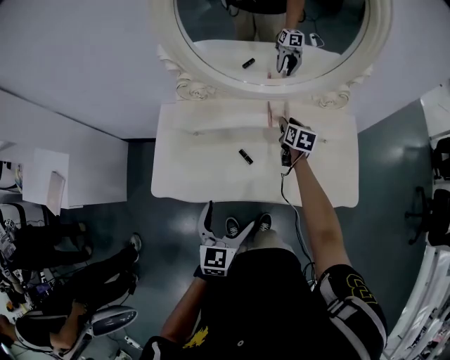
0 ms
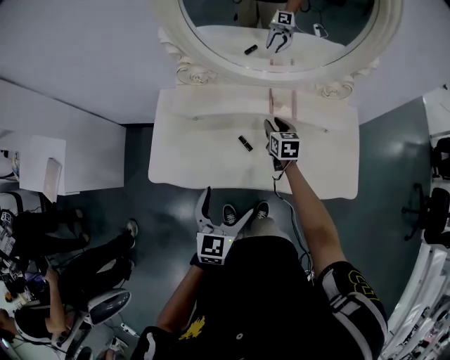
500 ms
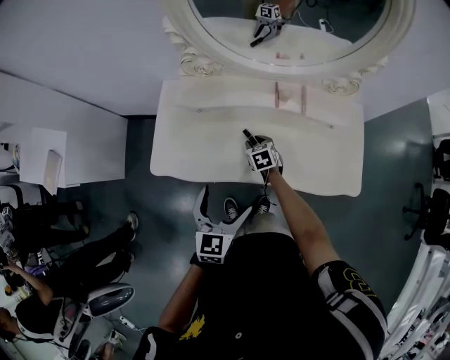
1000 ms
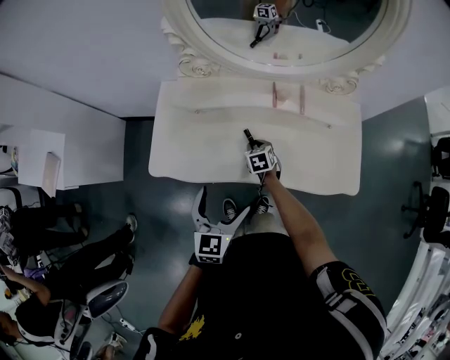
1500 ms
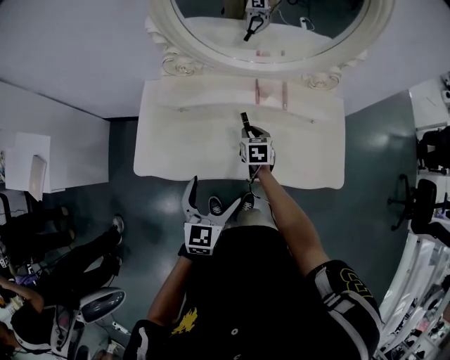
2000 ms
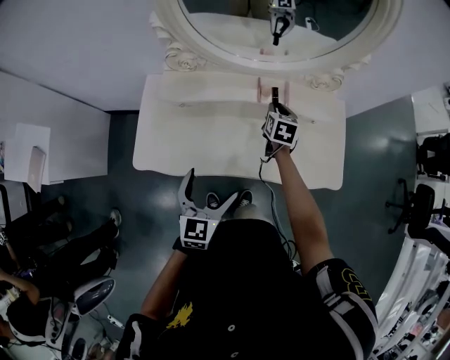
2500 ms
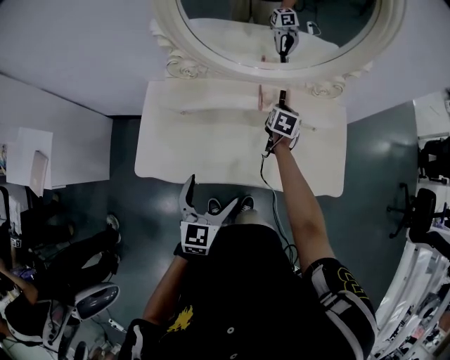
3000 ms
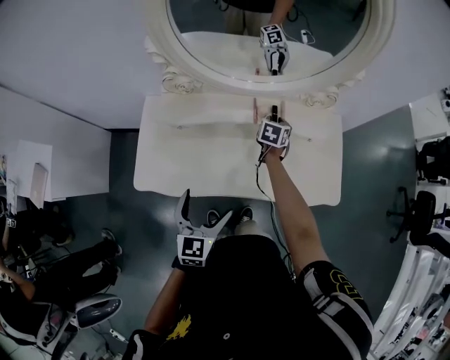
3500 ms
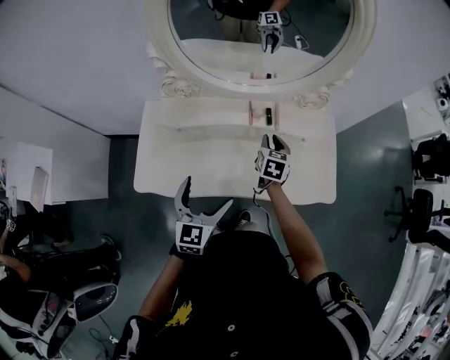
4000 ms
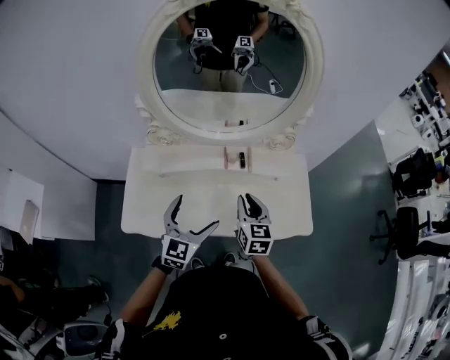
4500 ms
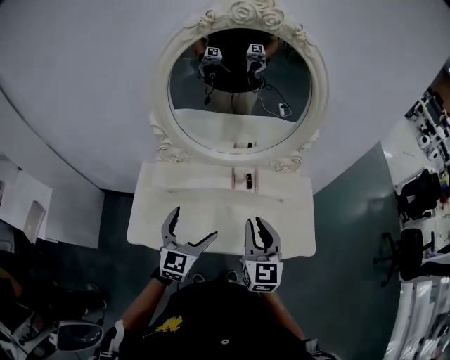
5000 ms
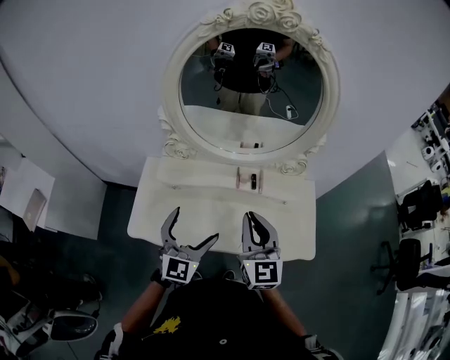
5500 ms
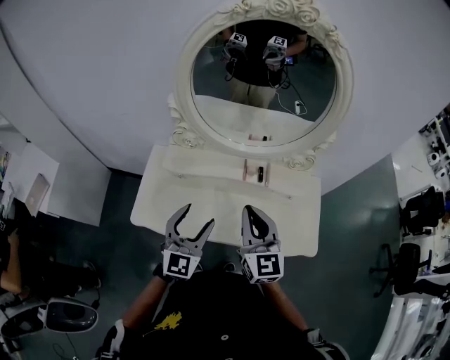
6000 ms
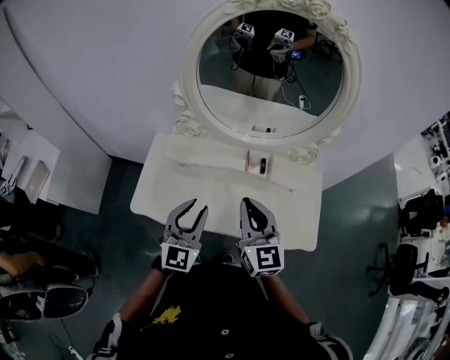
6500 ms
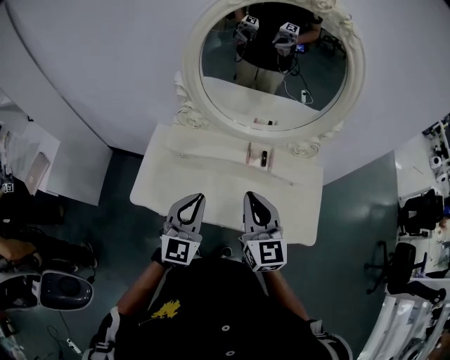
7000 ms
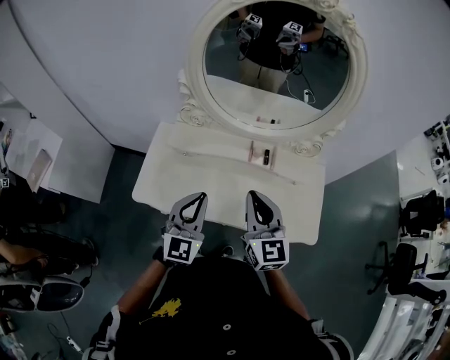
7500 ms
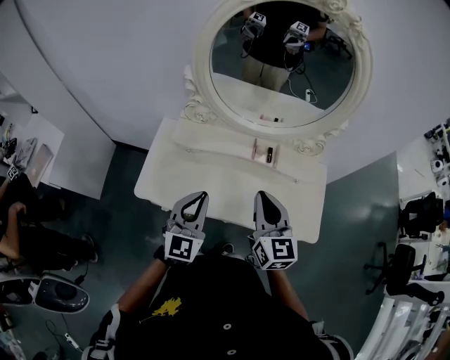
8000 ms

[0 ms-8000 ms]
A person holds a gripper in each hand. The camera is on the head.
0 ms to 2000 ms: The right gripper shifts approximately 15 cm backward and to the left, and swivels about 20 degrees.
2000 ms to 4000 ms: The left gripper shifts by some 5 cm. The right gripper moves to the right and upward, some 15 cm, and goes forward and returns, about 15 cm each way.
4000 ms to 6000 ms: The left gripper travels upward by some 10 cm, turns by some 30 degrees, and closes up, while the right gripper travels upward and backward by approximately 30 cm, and points its fingers approximately 30 degrees further upward.
6000 ms to 8000 ms: The left gripper closes up.

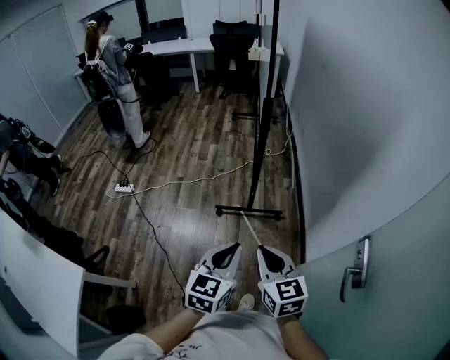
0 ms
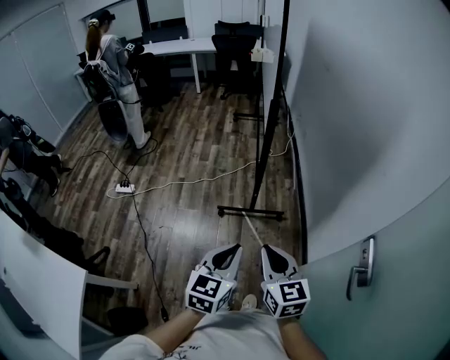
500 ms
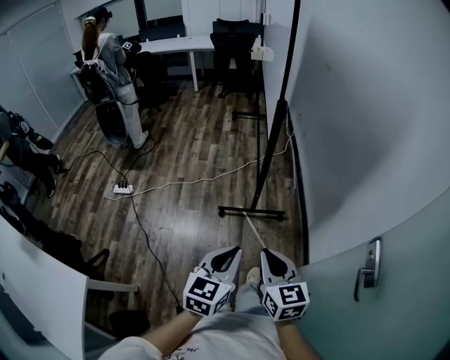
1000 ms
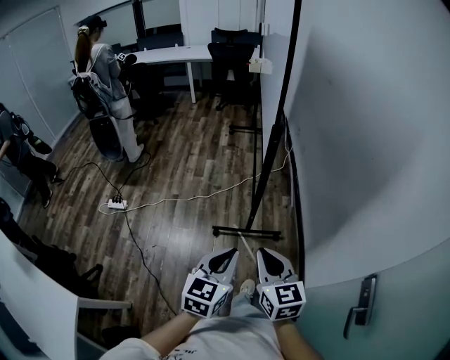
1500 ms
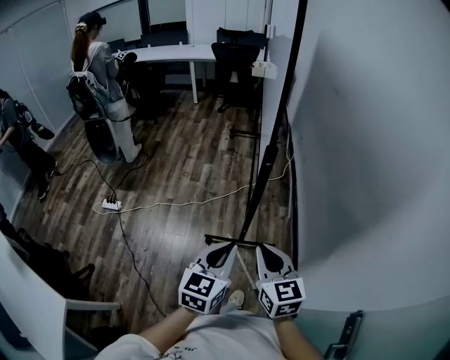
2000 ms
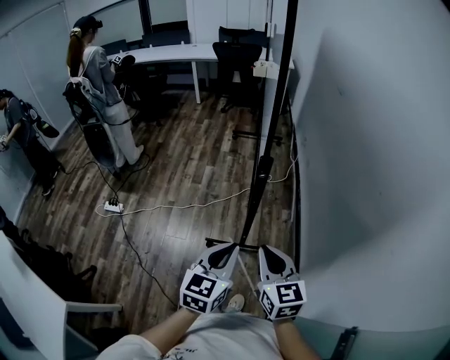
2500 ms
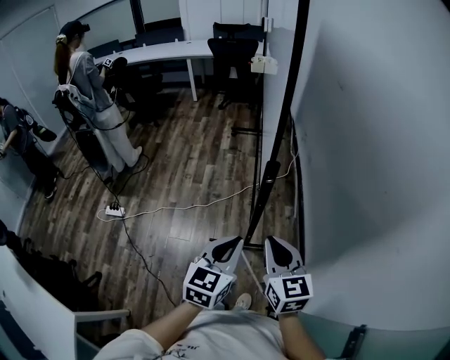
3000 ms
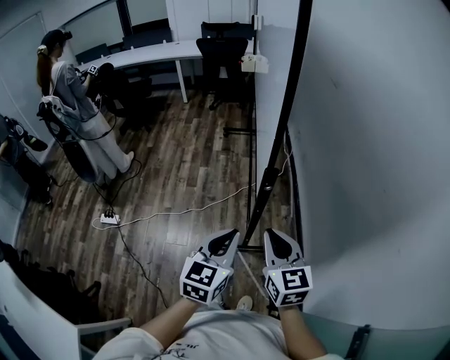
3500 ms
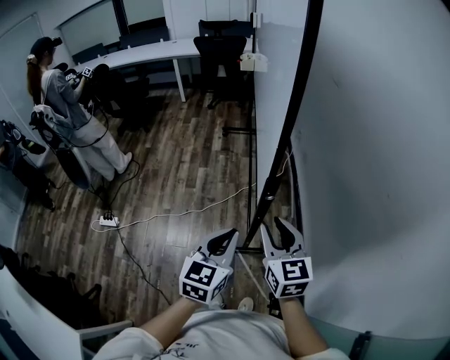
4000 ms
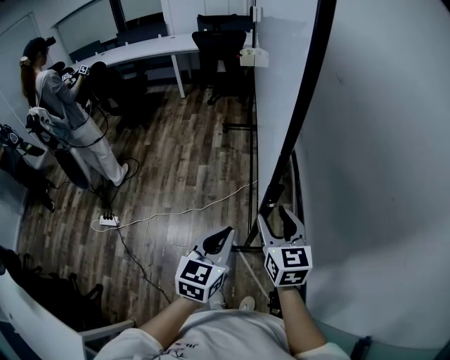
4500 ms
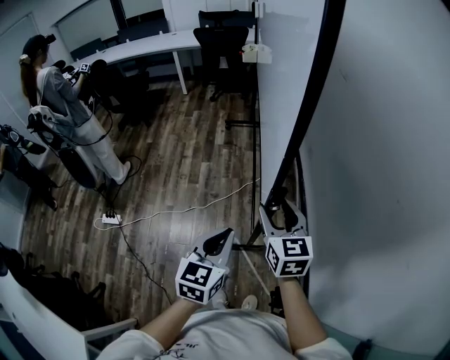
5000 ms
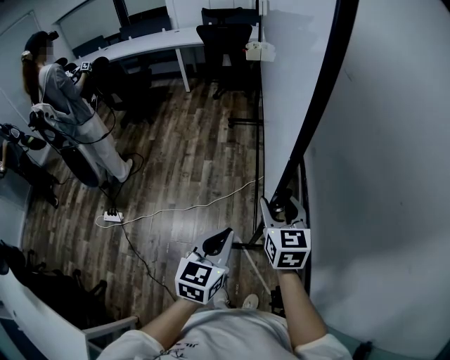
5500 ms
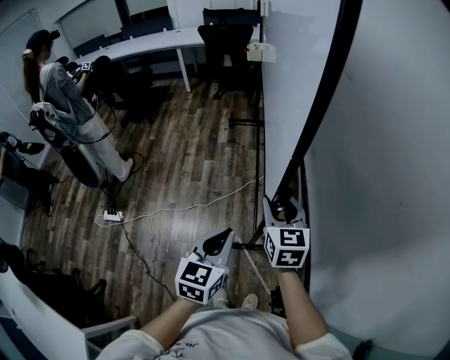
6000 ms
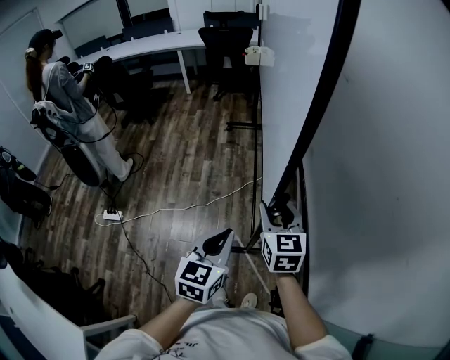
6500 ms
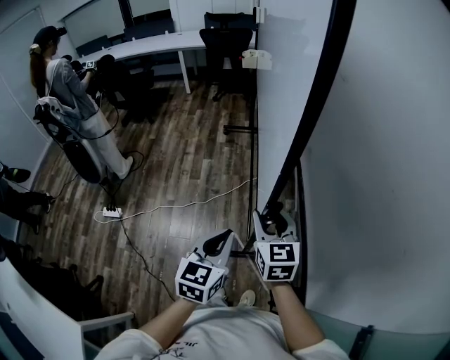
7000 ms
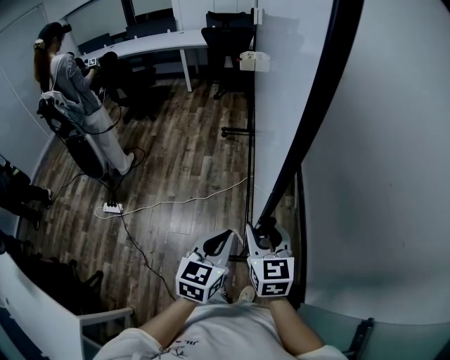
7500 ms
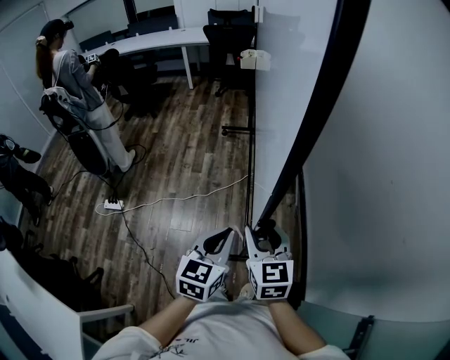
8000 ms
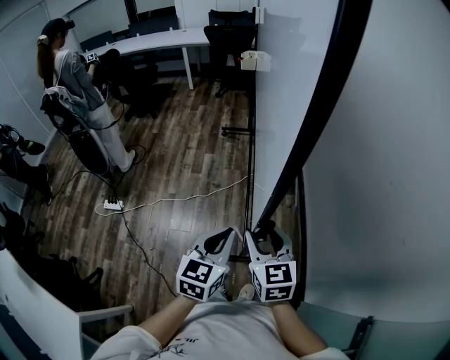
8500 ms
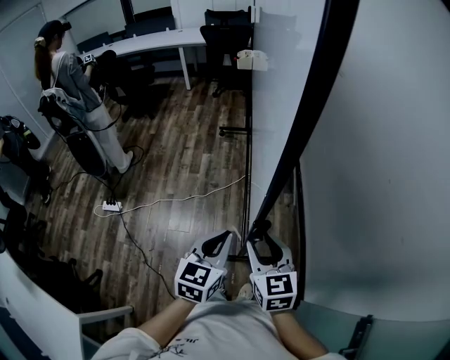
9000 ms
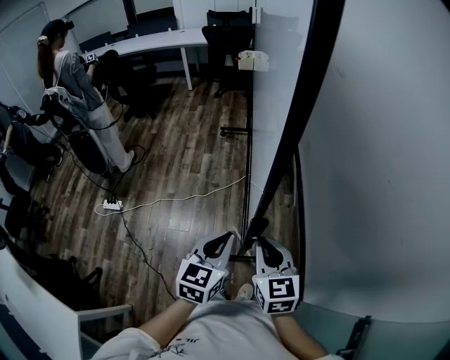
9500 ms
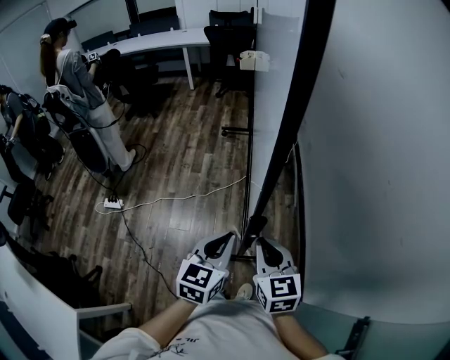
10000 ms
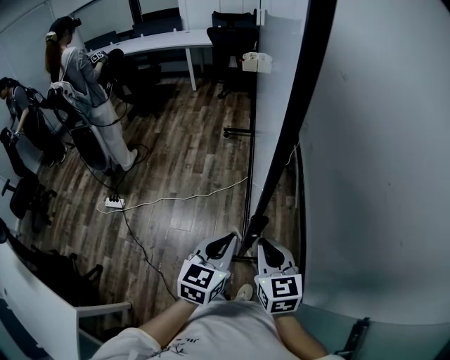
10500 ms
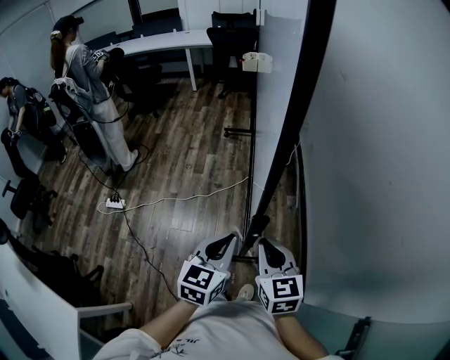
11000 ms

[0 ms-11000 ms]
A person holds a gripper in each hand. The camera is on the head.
0 ms to 2000 ms: Both grippers travel together forward, roughly 25 cm.
2000 ms to 3500 ms: Both grippers move forward, roughly 15 cm.
3500 ms to 5500 ms: The right gripper shifts some 15 cm forward, and opens its fingers. Meanwhile the left gripper heads forward, covering some 5 cm.
5500 ms to 7500 ms: The left gripper goes roughly 10 cm backward. The right gripper goes roughly 15 cm backward.
7500 ms to 9000 ms: The right gripper travels backward by some 5 cm.
9000 ms to 11000 ms: The right gripper closes its fingers.

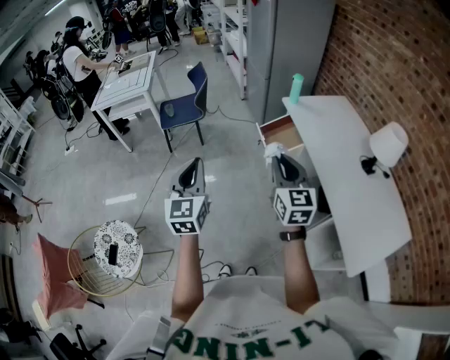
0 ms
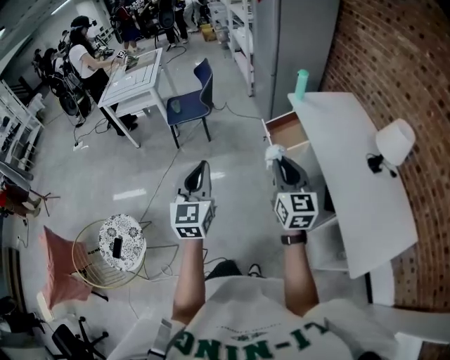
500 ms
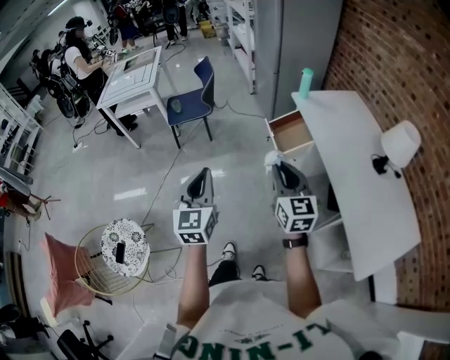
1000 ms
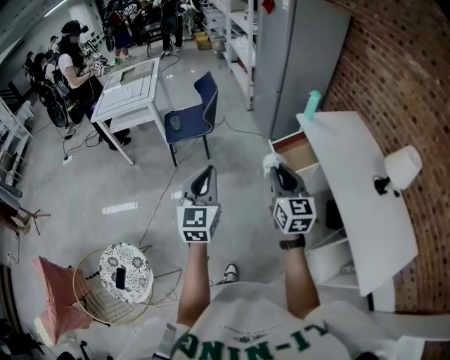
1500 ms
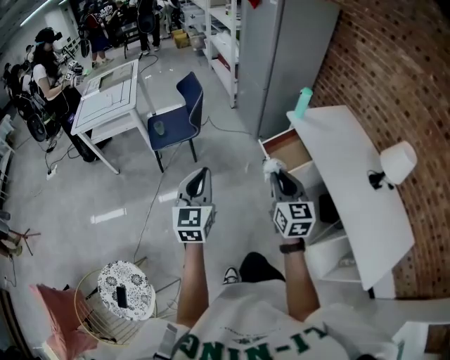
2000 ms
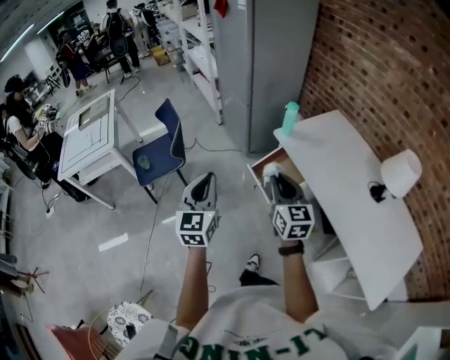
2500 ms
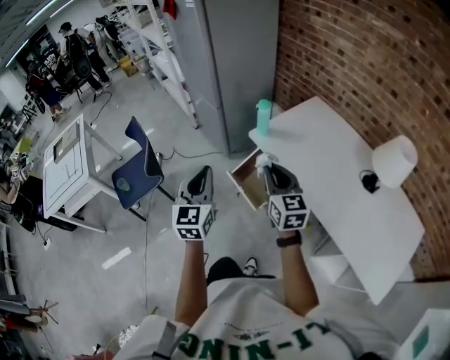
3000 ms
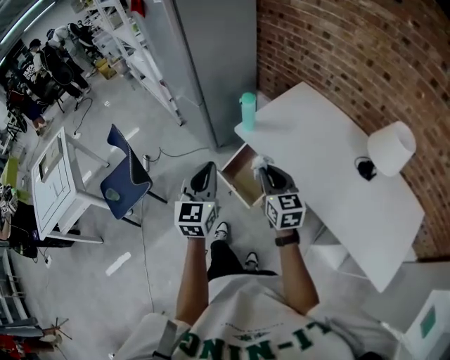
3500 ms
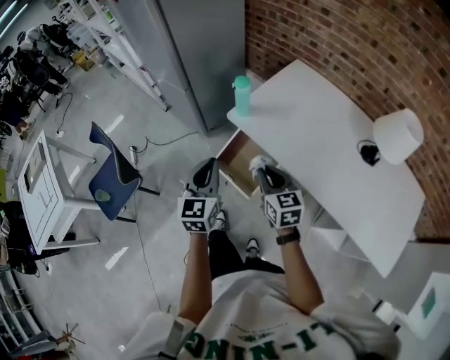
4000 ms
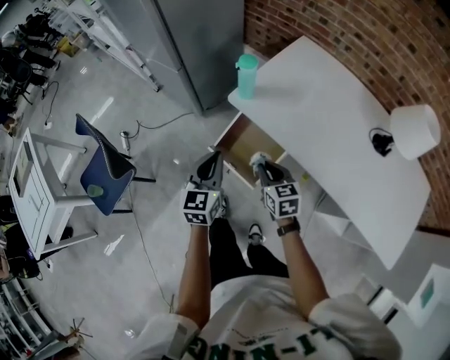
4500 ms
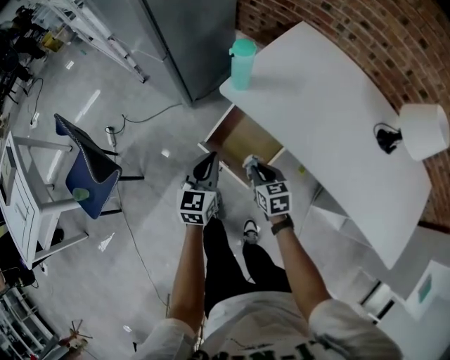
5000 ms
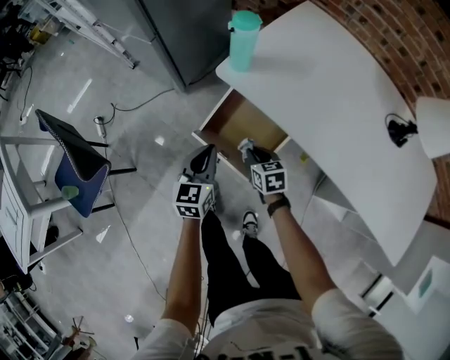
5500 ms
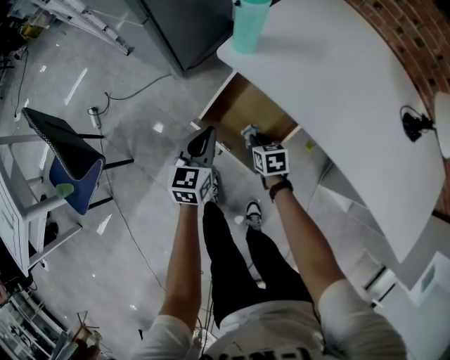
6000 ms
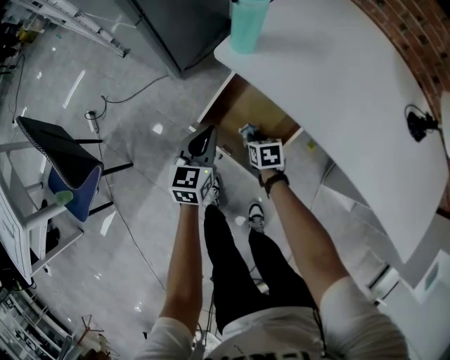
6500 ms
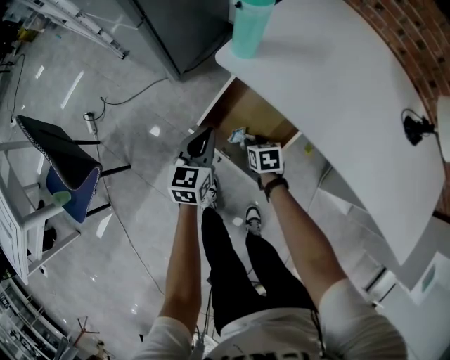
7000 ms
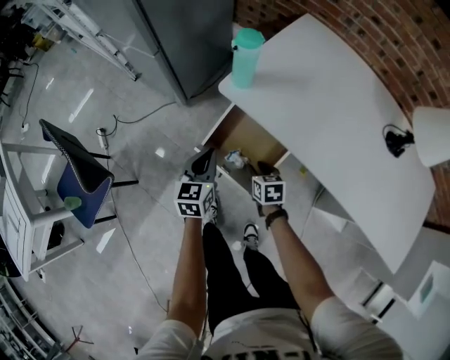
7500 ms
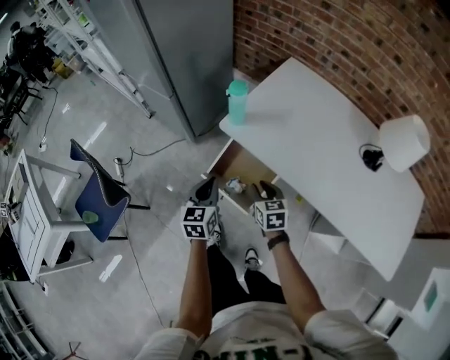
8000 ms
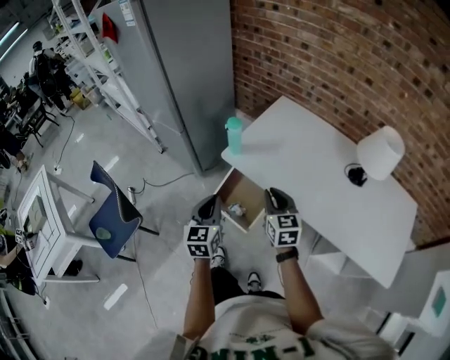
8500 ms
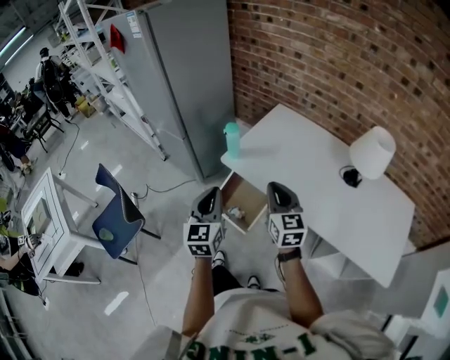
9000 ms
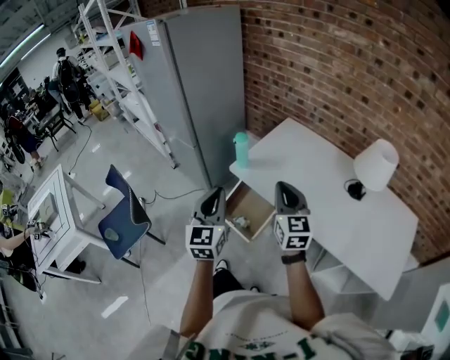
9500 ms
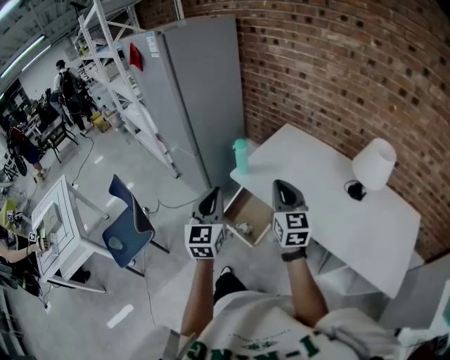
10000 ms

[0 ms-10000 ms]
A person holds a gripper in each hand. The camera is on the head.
0 ms to 2000 ms: Both grippers travel together forward and to the left, about 20 cm.
2000 ms to 4000 ms: The right gripper heads forward, downward and to the right, covering some 40 cm, and changes its angle by roughly 30 degrees. The left gripper is displaced forward and to the right by about 50 cm, and changes its angle by roughly 30 degrees.
4000 ms to 6000 ms: Both grippers move downward, approximately 35 cm. The right gripper points its fingers about 30 degrees further downward.
6000 ms to 8000 ms: The right gripper shifts some 20 cm upward, while the left gripper travels upward by roughly 15 cm.
8000 ms to 10000 ms: The grippers both shift upward by approximately 30 cm. The left gripper rotates about 30 degrees. The right gripper tips its fingers upward by roughly 40 degrees, and closes its fingers.
